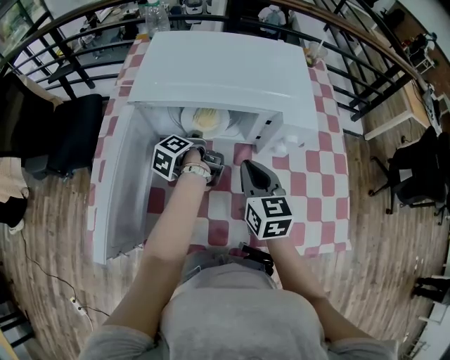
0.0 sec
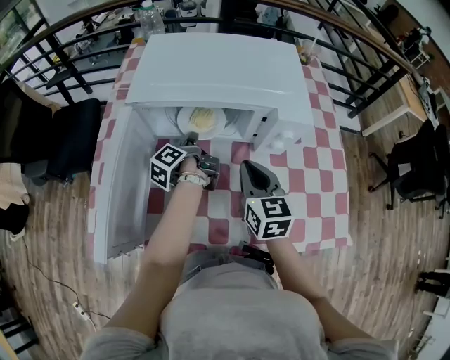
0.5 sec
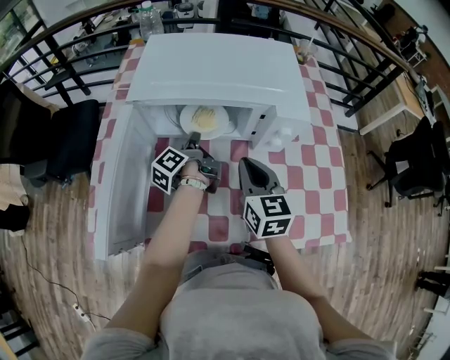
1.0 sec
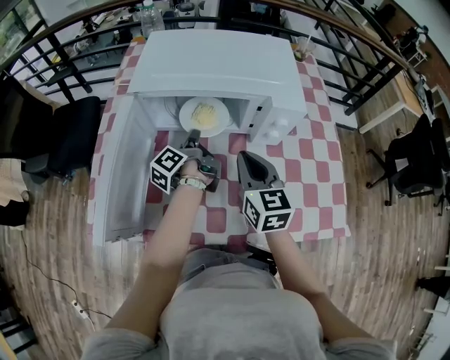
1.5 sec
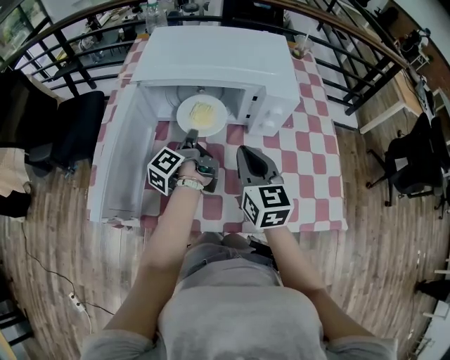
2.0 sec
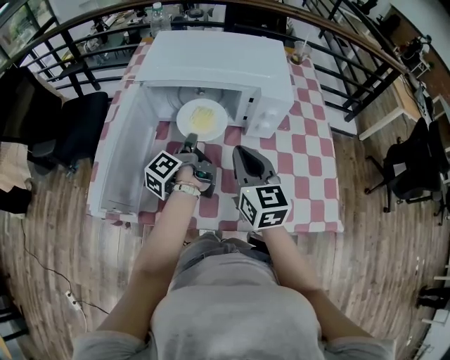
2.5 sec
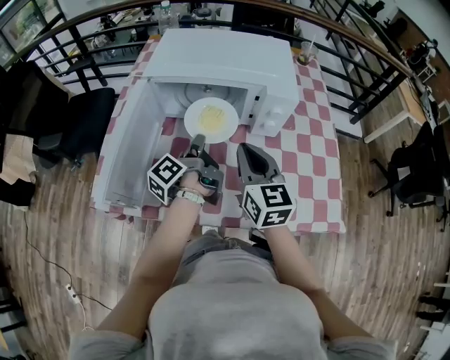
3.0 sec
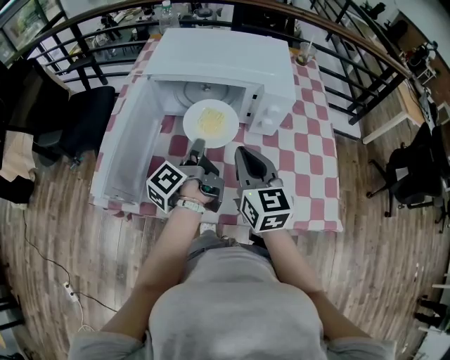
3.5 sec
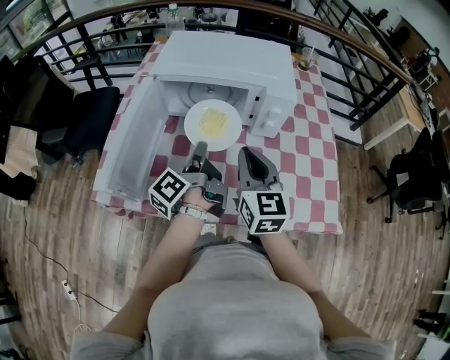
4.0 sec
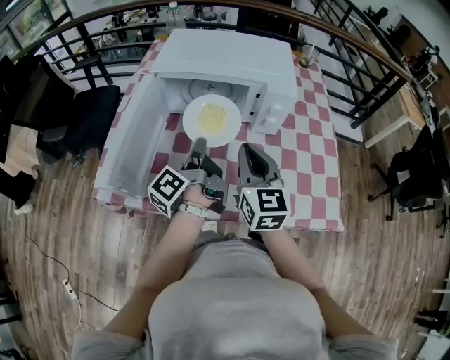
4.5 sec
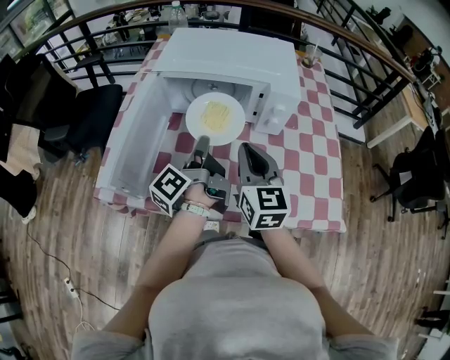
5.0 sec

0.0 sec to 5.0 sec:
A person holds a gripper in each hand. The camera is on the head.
0.0 sec to 2.5 sec: Both grippers move backward and upward, about 10 cm. The left gripper rotates approximately 20 degrees.
2.5 sec to 5.0 sec: The left gripper shifts approximately 10 cm backward and upward.

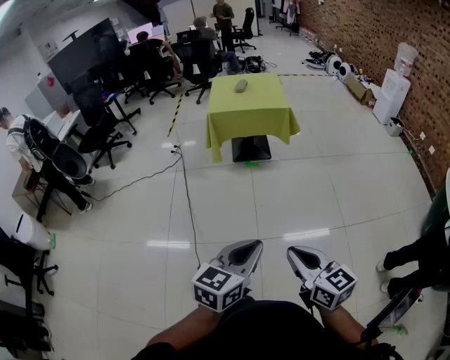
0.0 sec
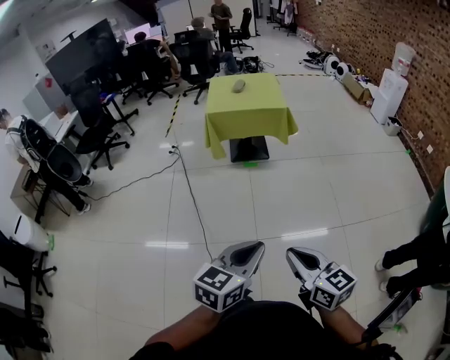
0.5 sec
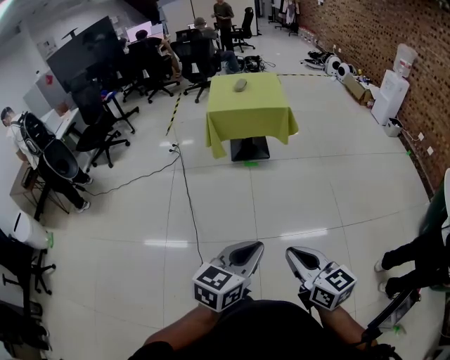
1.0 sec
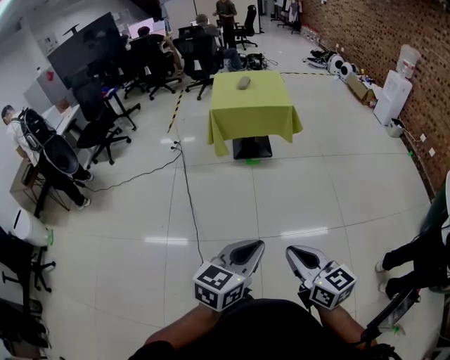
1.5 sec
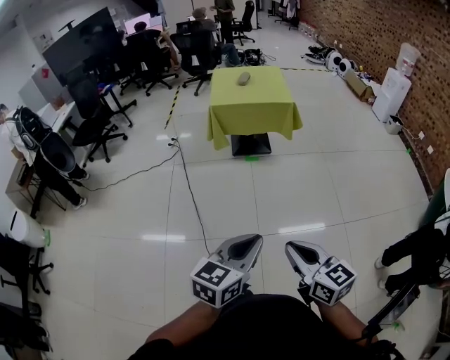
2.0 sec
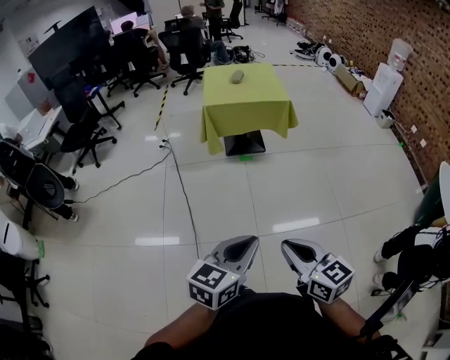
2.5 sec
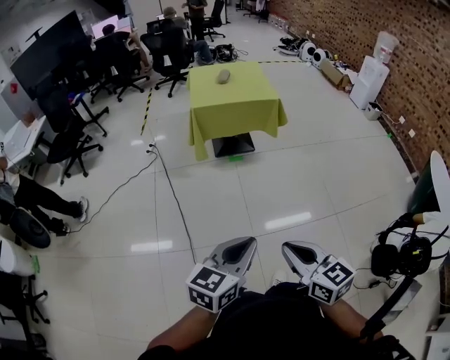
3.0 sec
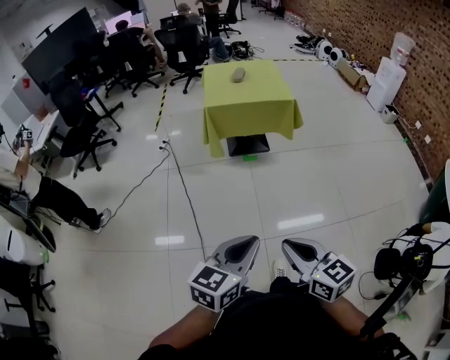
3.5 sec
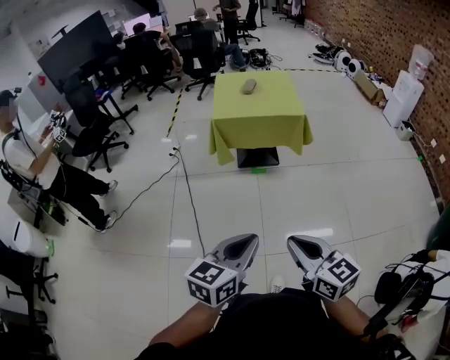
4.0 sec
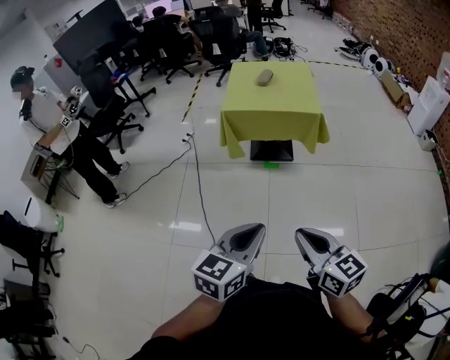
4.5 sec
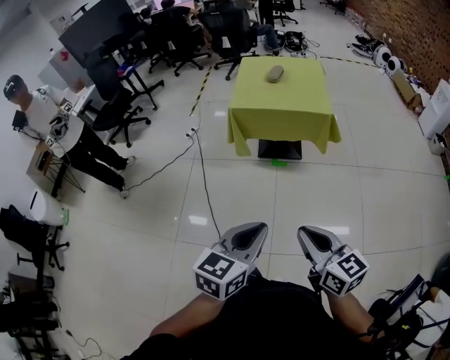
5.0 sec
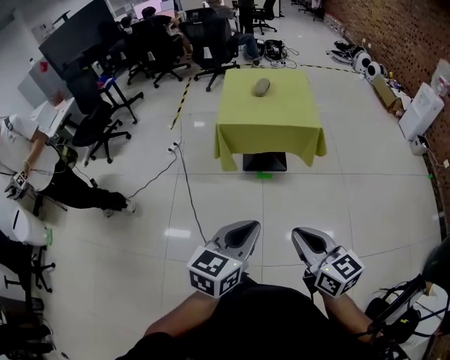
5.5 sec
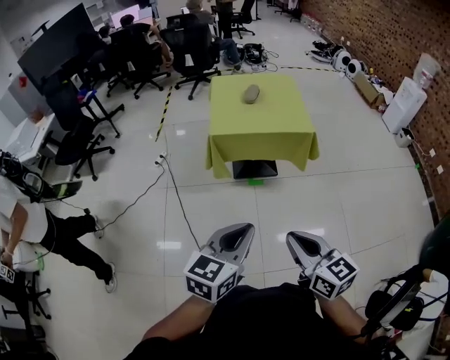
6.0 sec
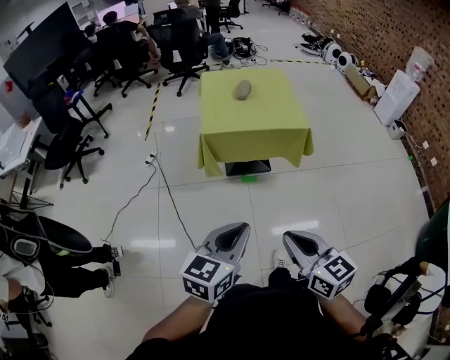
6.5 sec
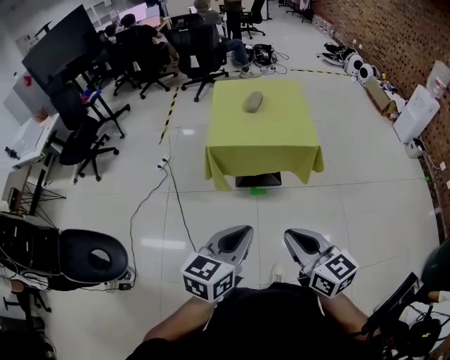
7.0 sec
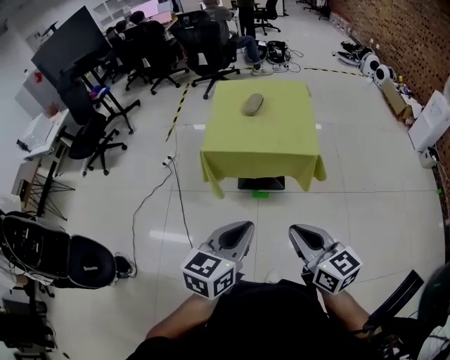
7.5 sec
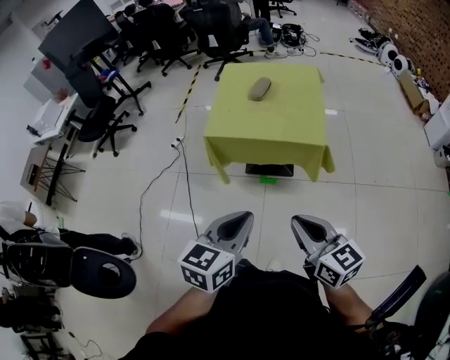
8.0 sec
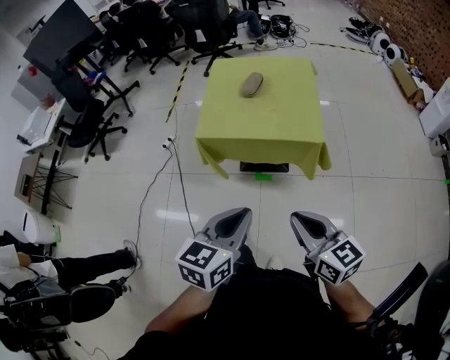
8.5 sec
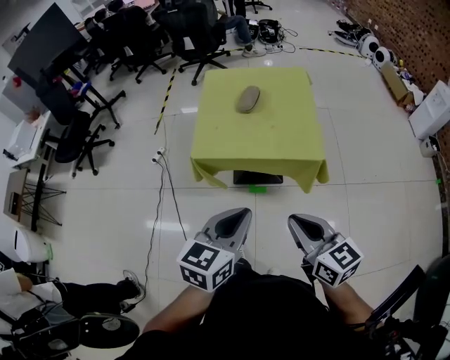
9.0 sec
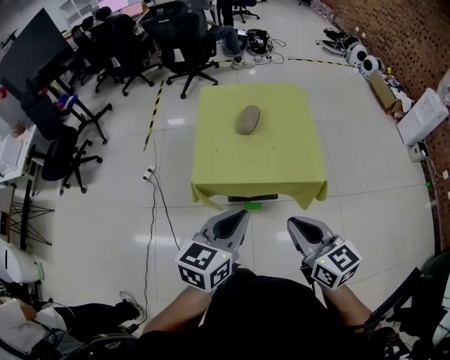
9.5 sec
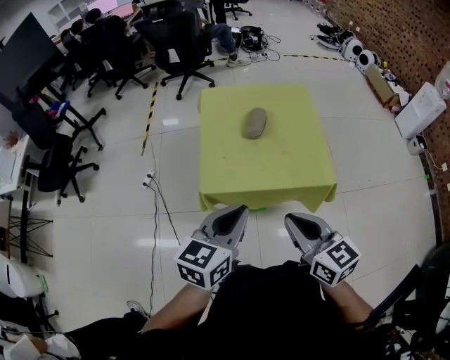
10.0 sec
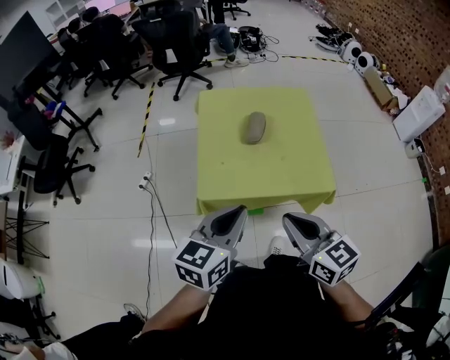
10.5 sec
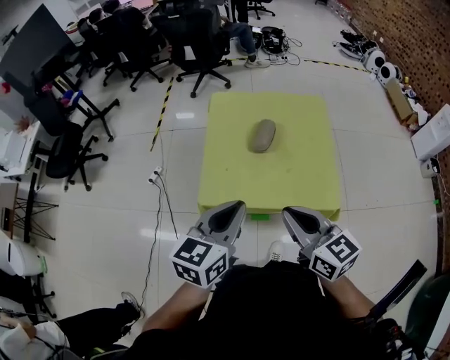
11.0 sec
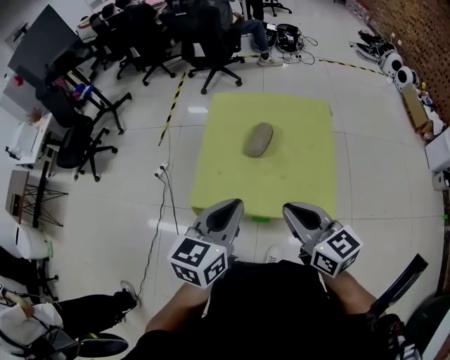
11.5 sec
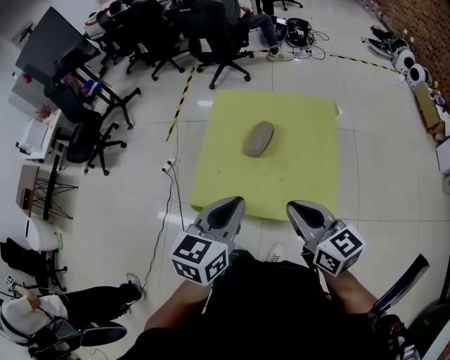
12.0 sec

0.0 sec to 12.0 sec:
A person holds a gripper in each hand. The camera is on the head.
0.0 sec to 2.0 sec: The right gripper shifts by some 5 cm; the left gripper moves approximately 5 cm.
2.0 sec to 4.0 sec: The grippers both shift forward by some 20 cm.
4.0 sec to 6.0 sec: The two grippers go some 20 cm forward.
6.0 sec to 8.0 sec: Both grippers travel together forward and to the right, some 25 cm.
8.0 sec to 10.0 sec: Both grippers move forward and to the left, some 30 cm.
10.0 sec to 12.0 sec: The grippers both shift forward and to the right by some 20 cm.

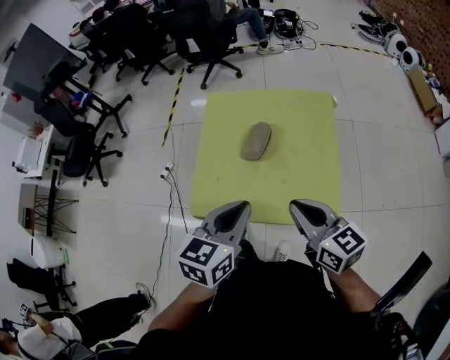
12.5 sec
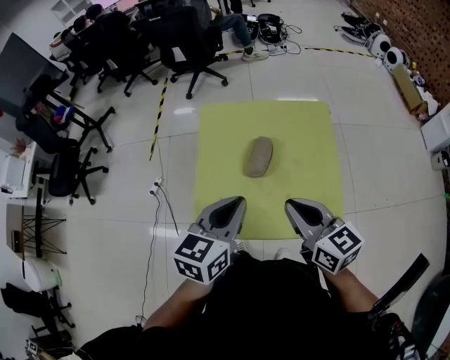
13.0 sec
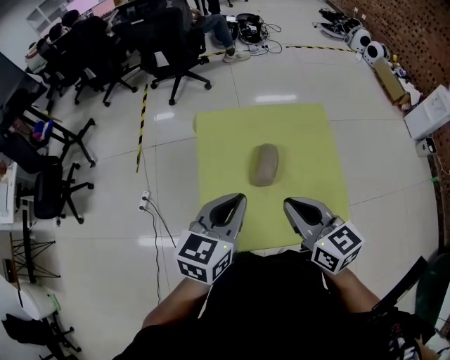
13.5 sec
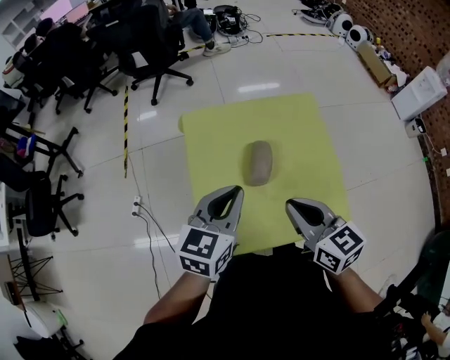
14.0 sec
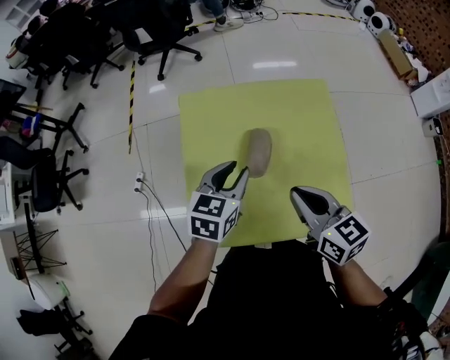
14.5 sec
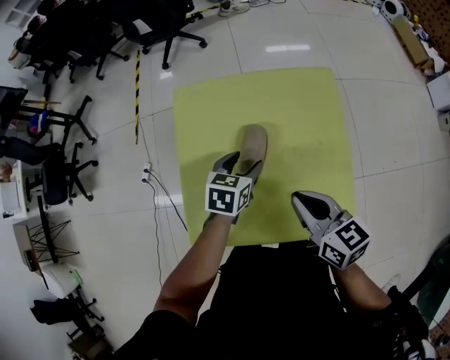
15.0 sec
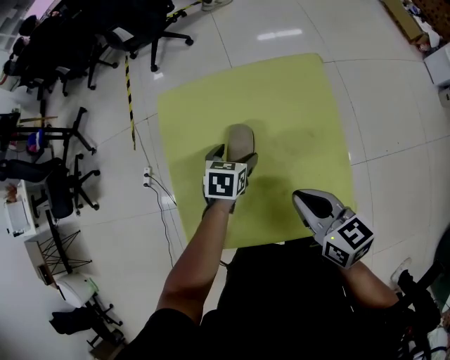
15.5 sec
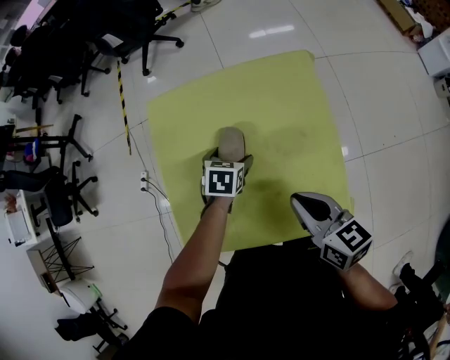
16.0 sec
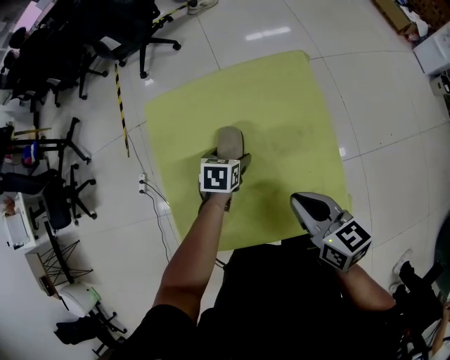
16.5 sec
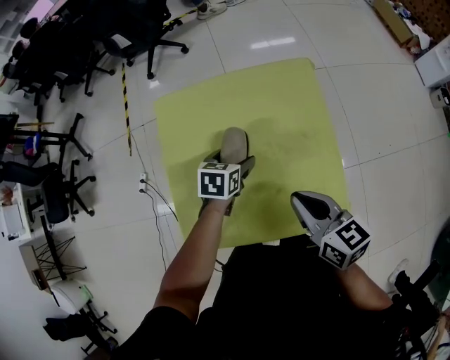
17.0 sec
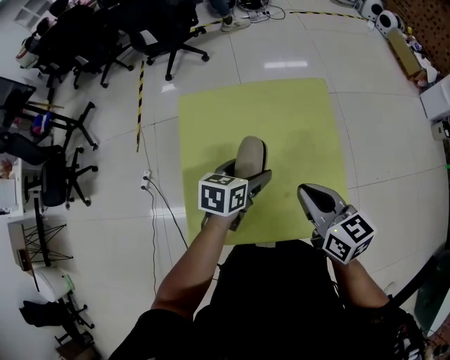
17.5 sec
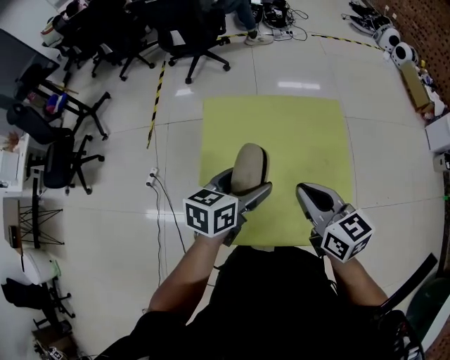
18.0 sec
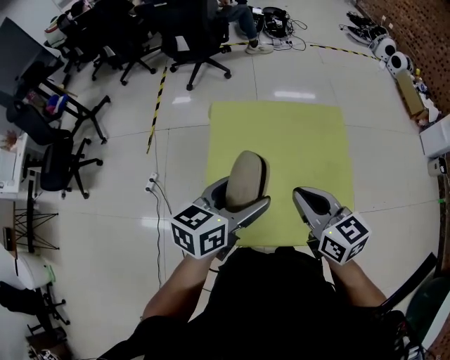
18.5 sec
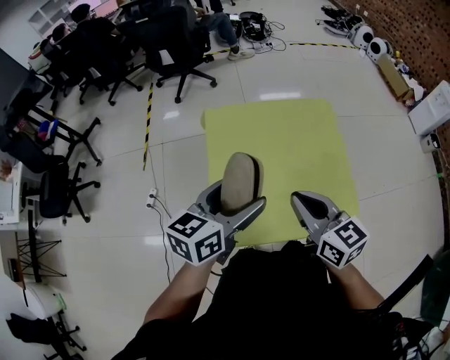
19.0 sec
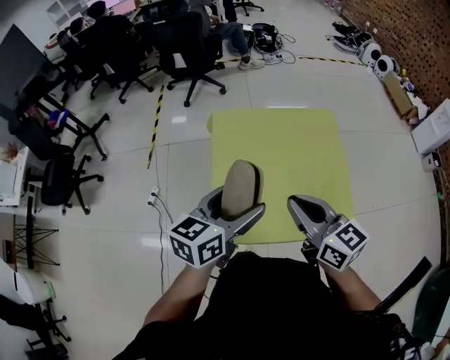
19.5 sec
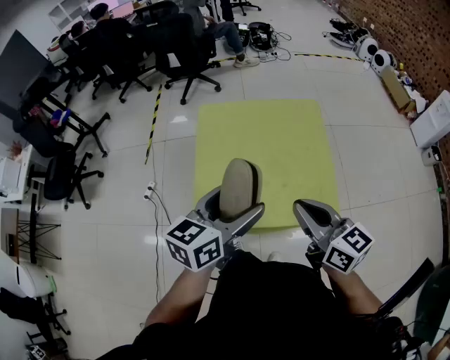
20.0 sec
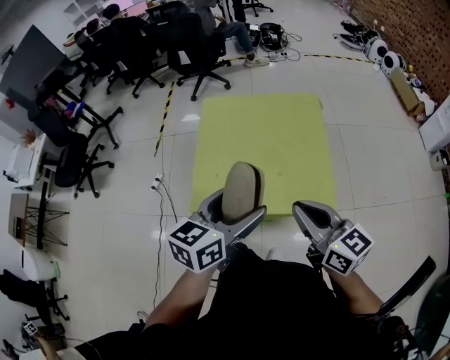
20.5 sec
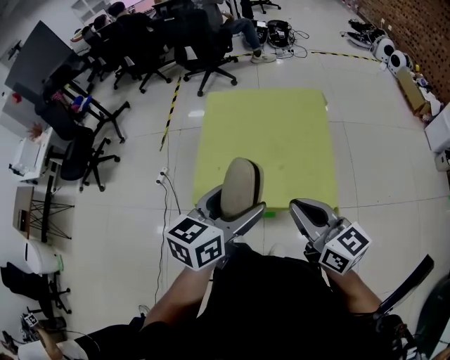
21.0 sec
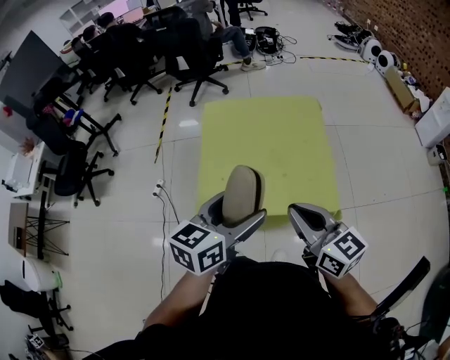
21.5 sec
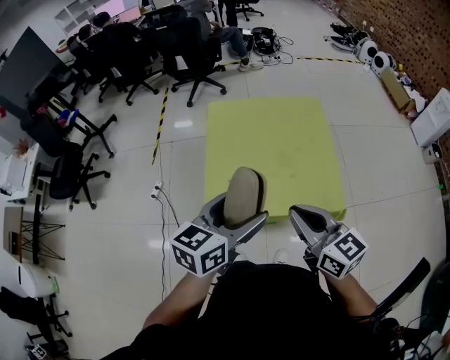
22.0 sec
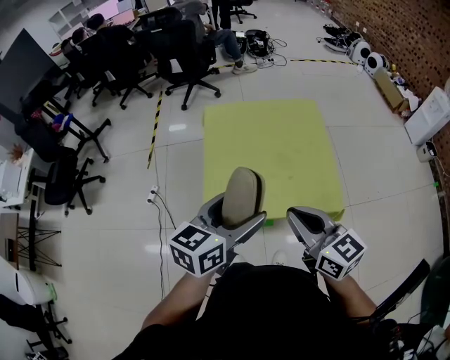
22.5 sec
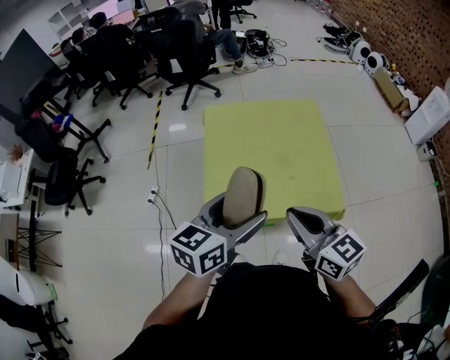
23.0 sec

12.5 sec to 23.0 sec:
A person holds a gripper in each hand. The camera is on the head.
12.5 sec to 14.5 sec: The right gripper goes approximately 15 cm forward; the left gripper heads forward and downward, covering roughly 25 cm.
14.5 sec to 16.5 sec: The left gripper heads downward, covering roughly 20 cm, turns by about 30 degrees, and opens its fingers, while the right gripper shifts about 10 cm to the right and downward.
16.5 sec to 19.0 sec: The right gripper moves to the left and upward, some 20 cm. Meanwhile the left gripper is displaced upward, backward and to the left by roughly 35 cm, and points its fingers about 40 degrees further upward.
19.0 sec to 21.0 sec: Both grippers move backward and to the right, roughly 20 cm.
21.0 sec to 23.0 sec: Both grippers travel together to the left, roughly 10 cm.
